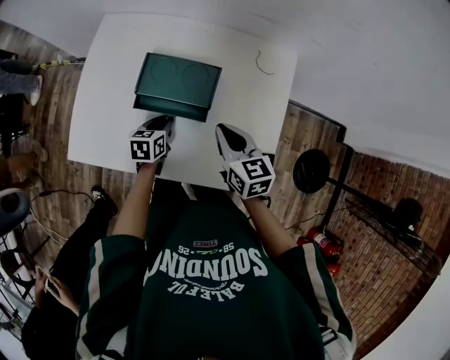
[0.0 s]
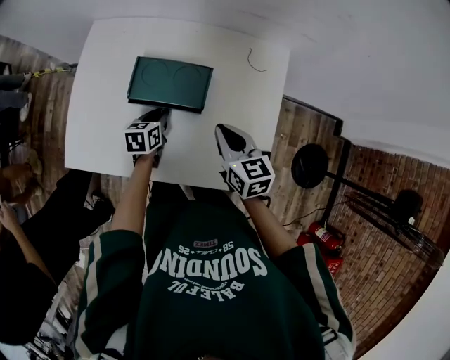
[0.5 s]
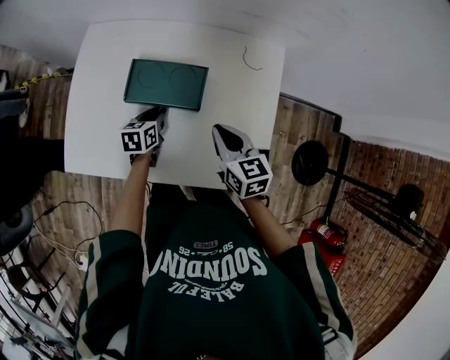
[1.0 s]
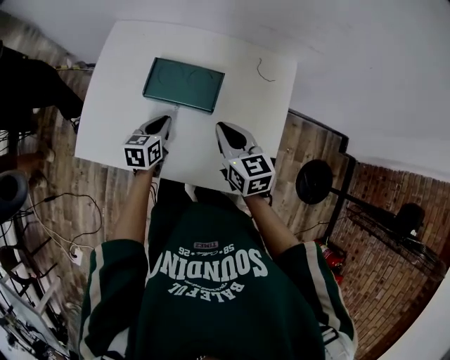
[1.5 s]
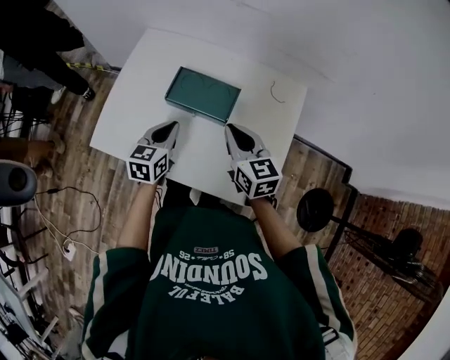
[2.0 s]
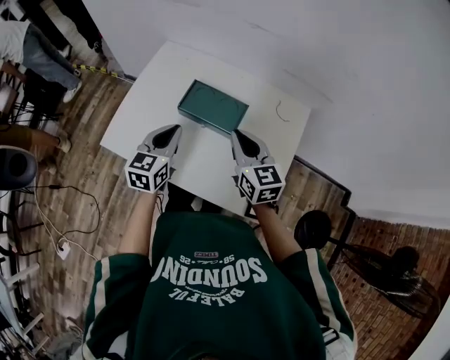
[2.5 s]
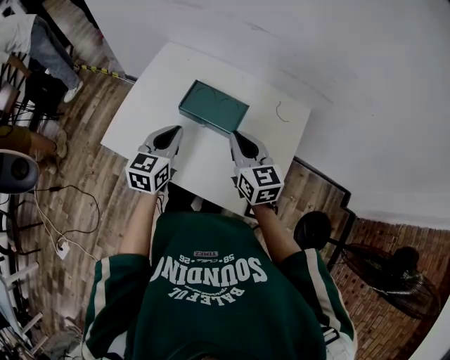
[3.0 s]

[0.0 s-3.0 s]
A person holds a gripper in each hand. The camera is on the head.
0.0 to 1.5 s: The left gripper goes approximately 5 cm upward.
1.5 to 3.0 s: The left gripper shifts roughly 15 cm upward, and swivels some 20 degrees; the right gripper heads upward, covering roughly 10 cm.

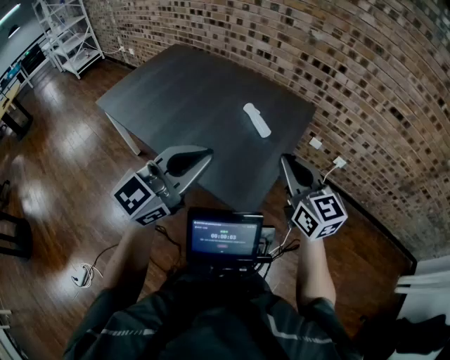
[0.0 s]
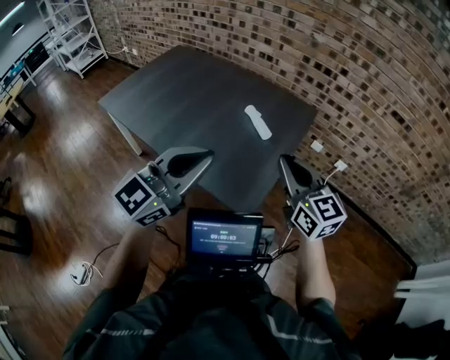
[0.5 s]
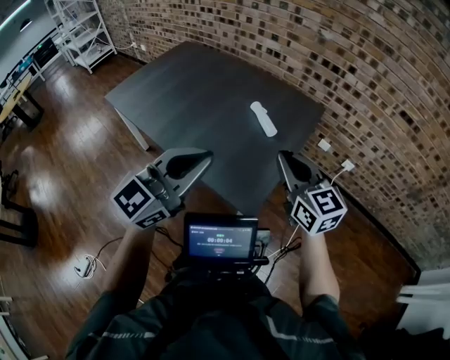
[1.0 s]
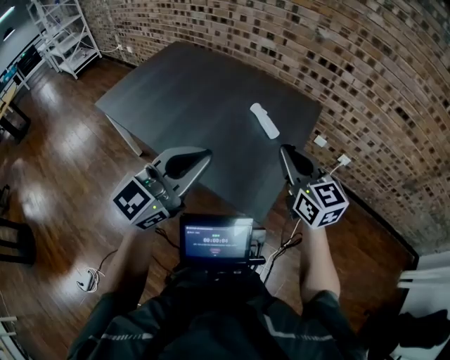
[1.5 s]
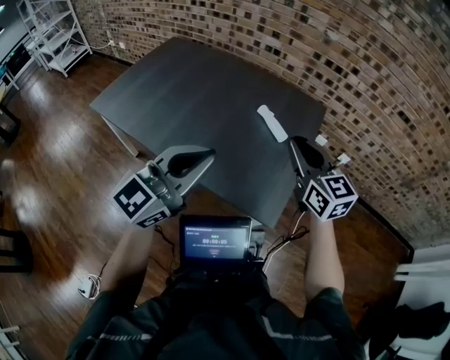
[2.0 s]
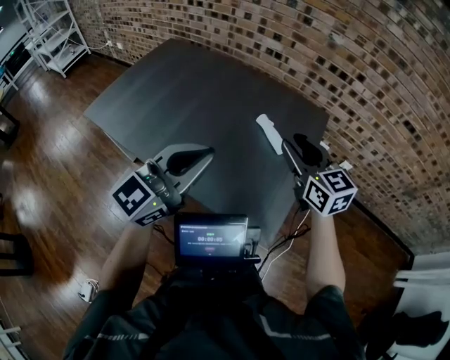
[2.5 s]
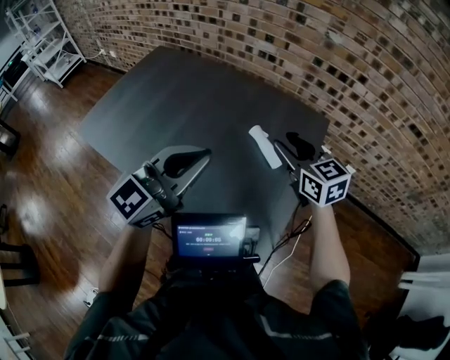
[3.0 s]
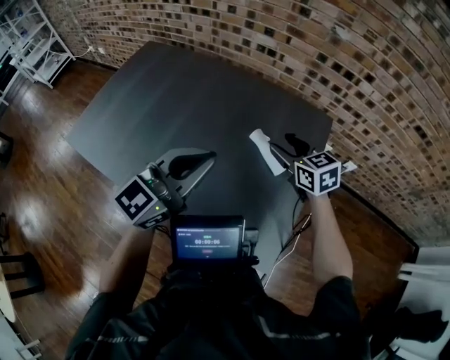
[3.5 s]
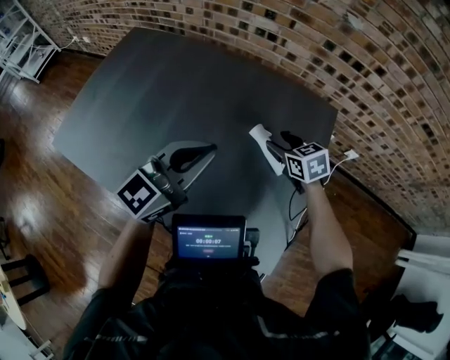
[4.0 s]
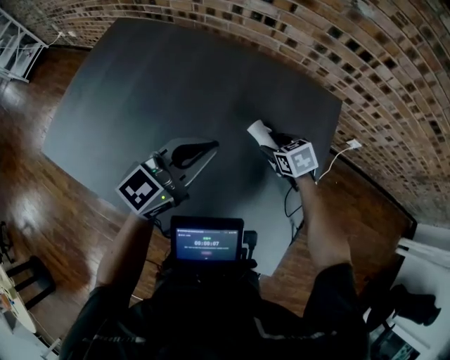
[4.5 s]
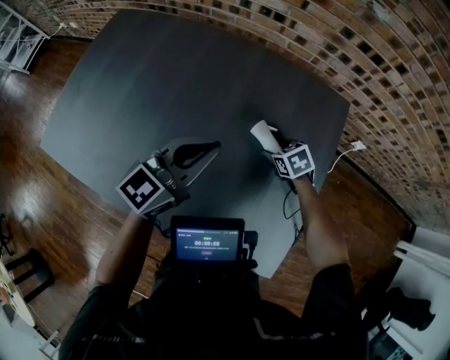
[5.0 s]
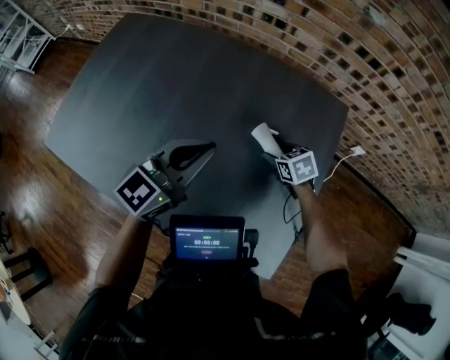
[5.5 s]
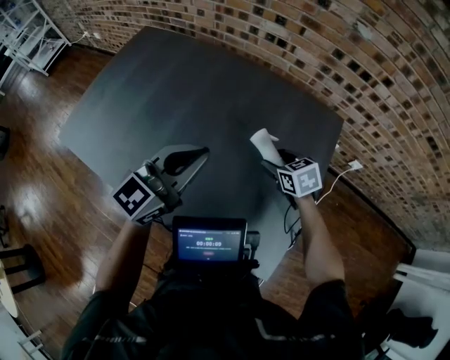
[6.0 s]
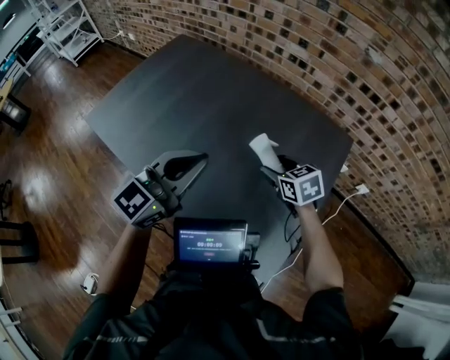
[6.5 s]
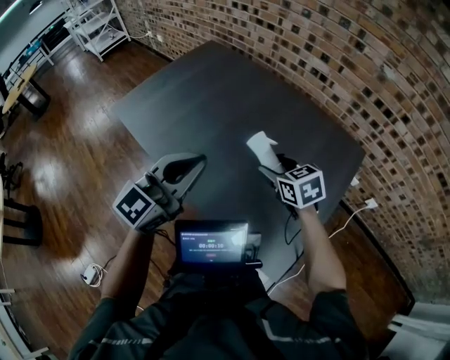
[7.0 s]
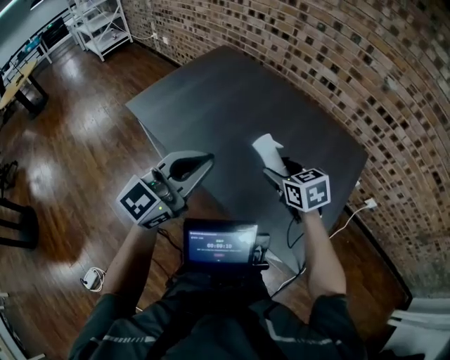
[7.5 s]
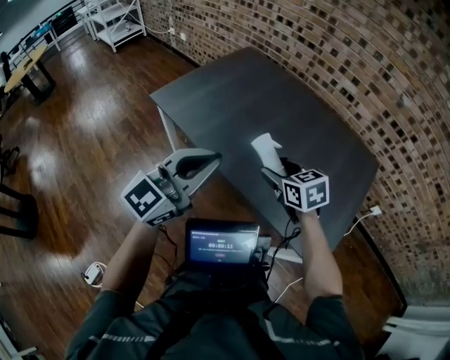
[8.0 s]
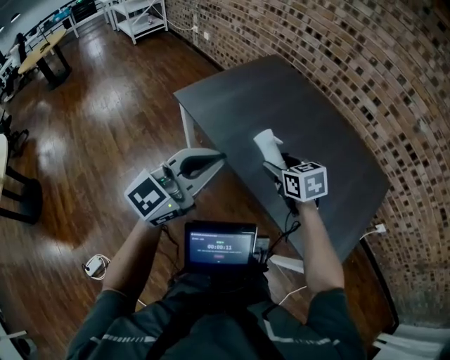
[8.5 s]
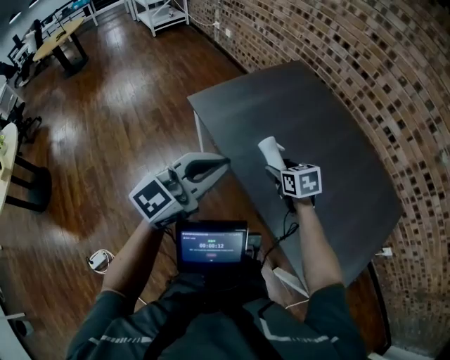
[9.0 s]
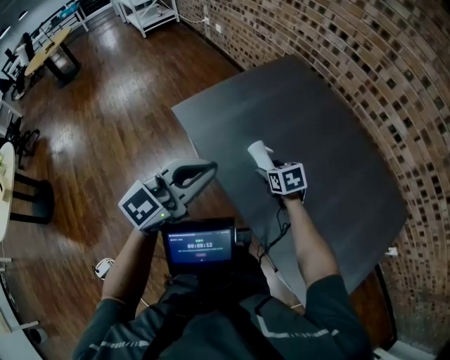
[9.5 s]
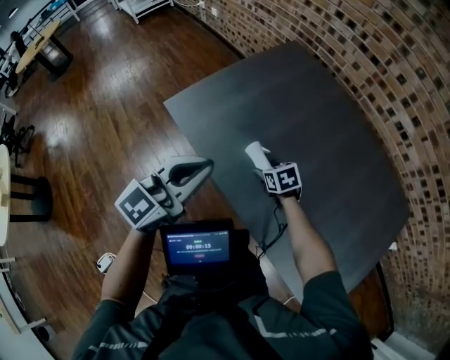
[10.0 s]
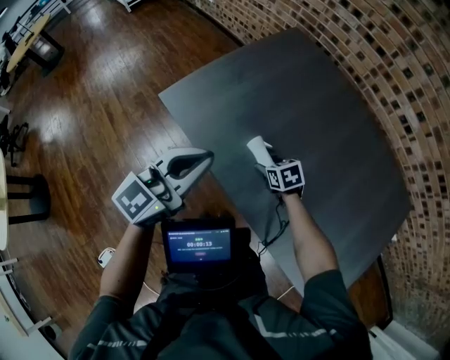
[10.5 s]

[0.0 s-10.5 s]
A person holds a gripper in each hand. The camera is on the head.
0.0 to 2.0 s: The left gripper travels to the left by about 10 cm; the right gripper moves to the left and forward, approximately 15 cm.
2.0 to 4.0 s: The left gripper shifts approximately 35 cm forward. Meanwhile the right gripper shifts some 40 cm forward and downward, points its fingers about 30 degrees further downward, and opens up.
4.0 to 6.5 s: Both grippers travel together backward and to the left, about 10 cm. The right gripper moves about 15 cm downward and comes back.
6.5 to 8.5 s: The left gripper moves to the left and backward, roughly 40 cm. Meanwhile the right gripper heads to the left, covering about 40 cm.
8.5 to 10.5 s: The left gripper moves forward, about 25 cm. The right gripper heads downward and forward, covering roughly 30 cm, and swivels some 20 degrees.

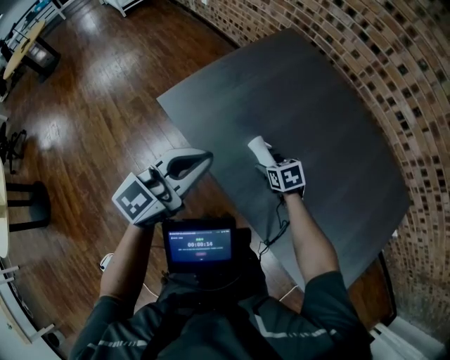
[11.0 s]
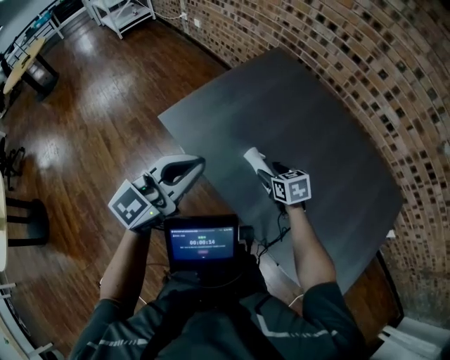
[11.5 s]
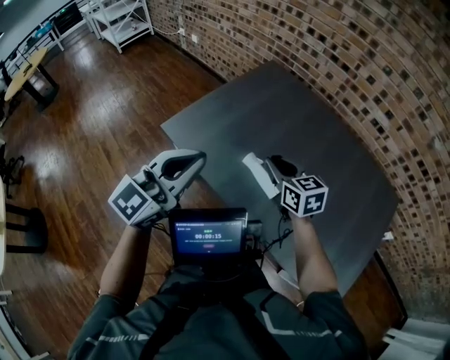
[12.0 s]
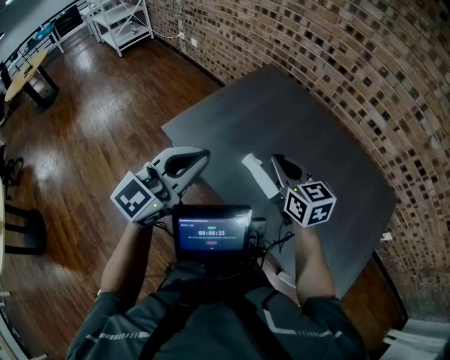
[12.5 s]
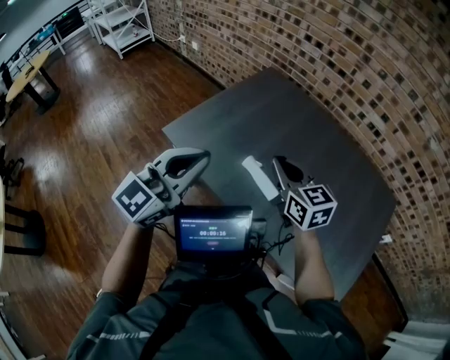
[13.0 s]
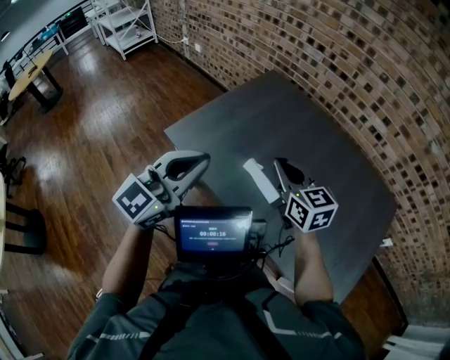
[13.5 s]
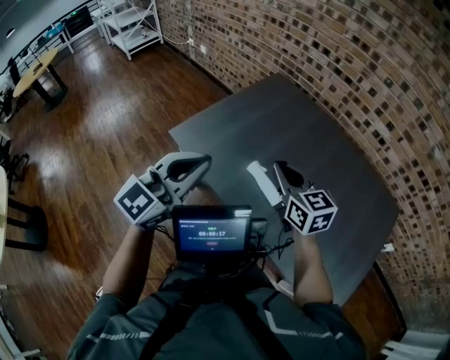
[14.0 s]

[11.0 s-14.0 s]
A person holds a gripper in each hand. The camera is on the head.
11.0 to 12.5 s: The left gripper heads upward, covering some 10 cm. The right gripper goes roughly 30 cm upward, tilts its fingers about 40 degrees upward, and closes.
12.5 to 14.0 s: The grippers move only a little.

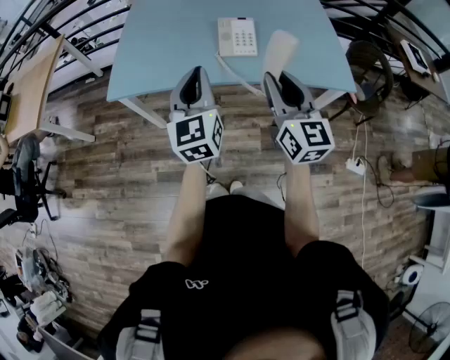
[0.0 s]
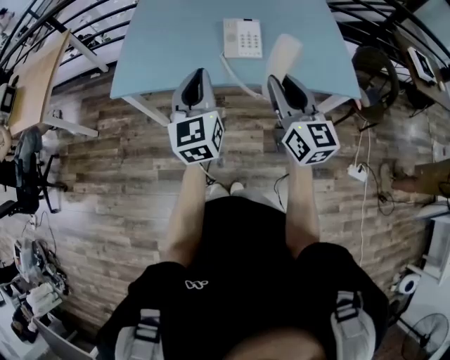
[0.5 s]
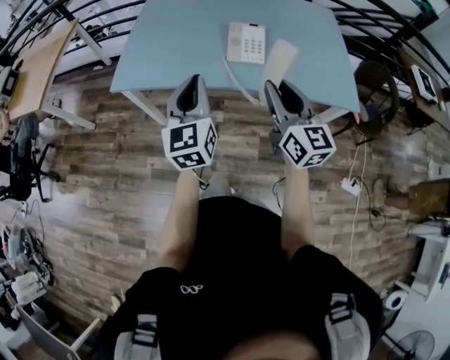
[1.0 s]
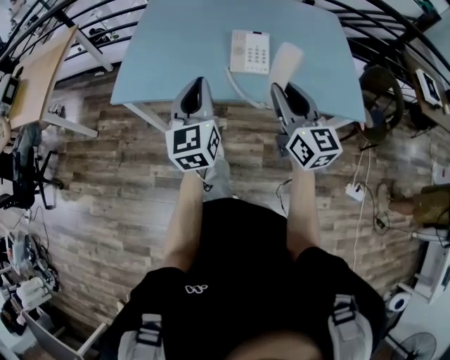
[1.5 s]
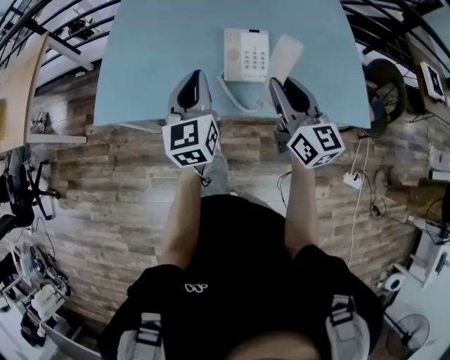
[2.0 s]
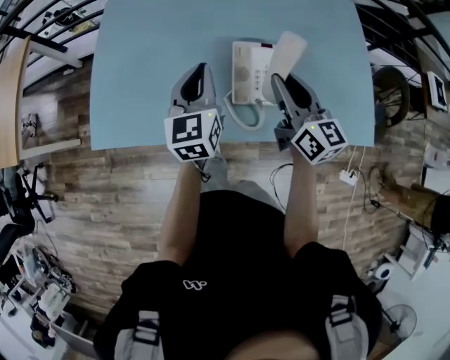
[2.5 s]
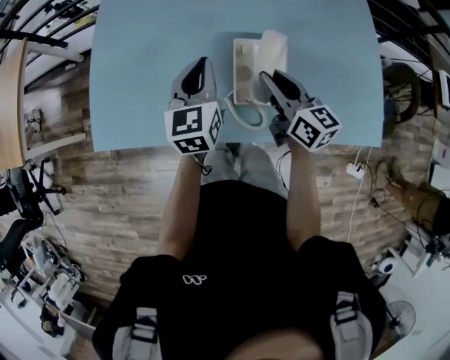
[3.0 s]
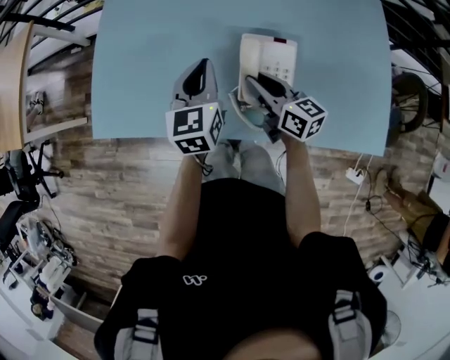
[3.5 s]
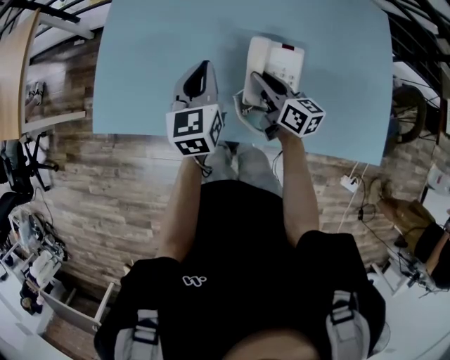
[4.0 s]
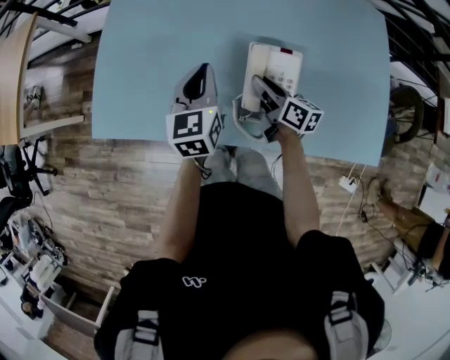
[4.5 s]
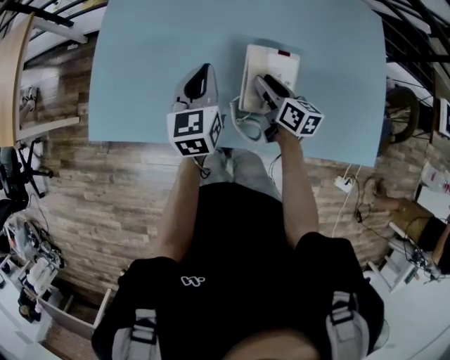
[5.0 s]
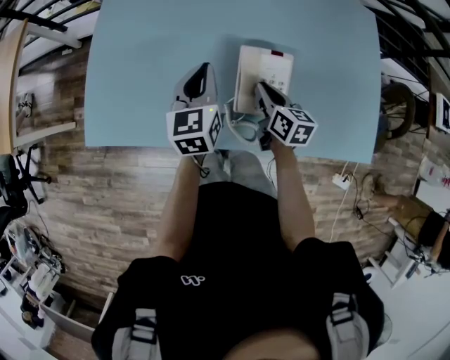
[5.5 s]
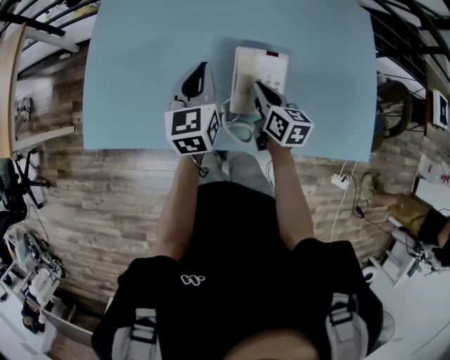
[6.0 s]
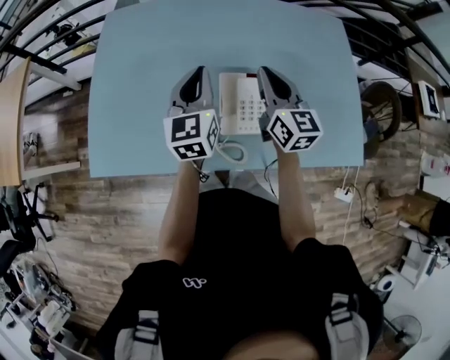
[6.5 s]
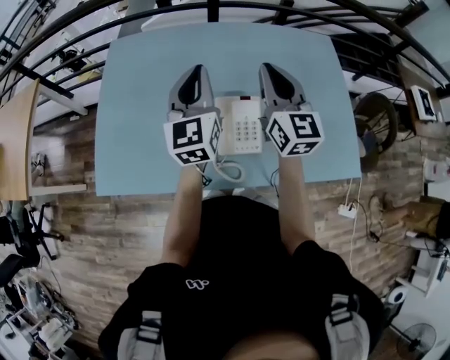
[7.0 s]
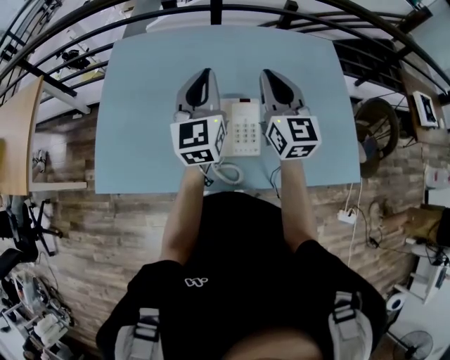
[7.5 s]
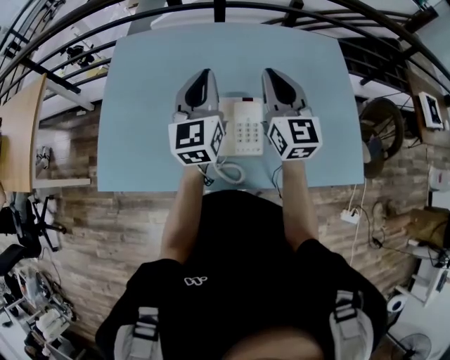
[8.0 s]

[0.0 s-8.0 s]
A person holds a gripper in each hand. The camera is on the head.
0.0 to 2.0 s: The two grippers go approximately 20 cm forward.
2.0 to 4.0 s: The two grippers go some 25 cm forward and downward. The right gripper swivels about 40 degrees.
4.0 to 6.0 s: The right gripper changes its angle by some 20 degrees.
6.0 to 8.0 s: The right gripper heads upward, covering roughly 25 cm, and tilts its fingers about 30 degrees upward. The left gripper heads upward and to the right, covering roughly 20 cm, and swivels roughly 20 degrees.

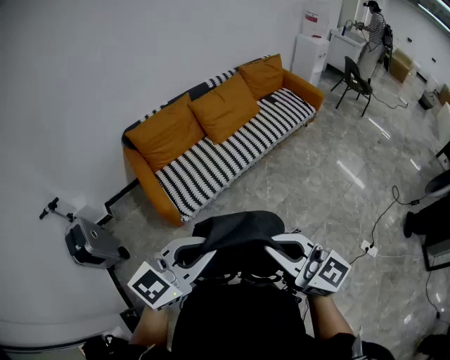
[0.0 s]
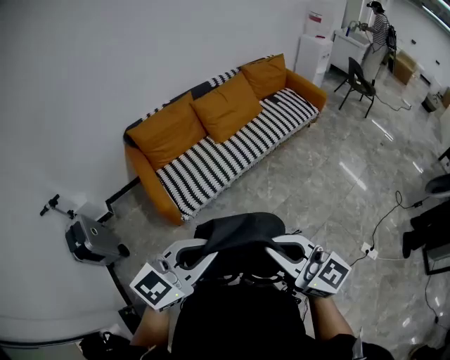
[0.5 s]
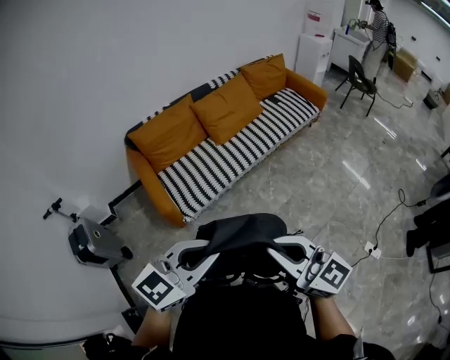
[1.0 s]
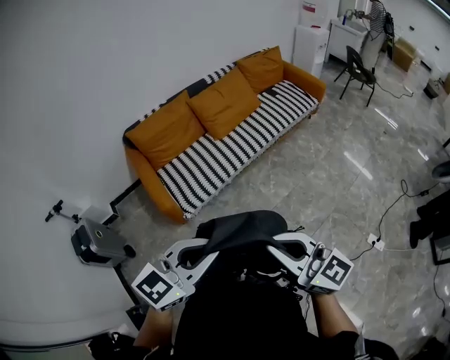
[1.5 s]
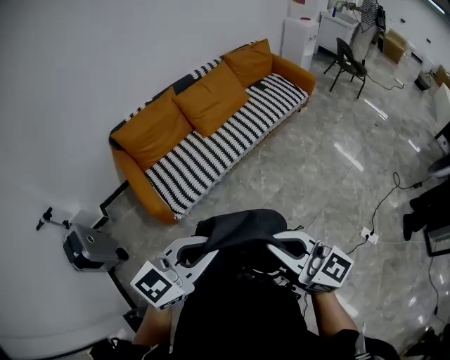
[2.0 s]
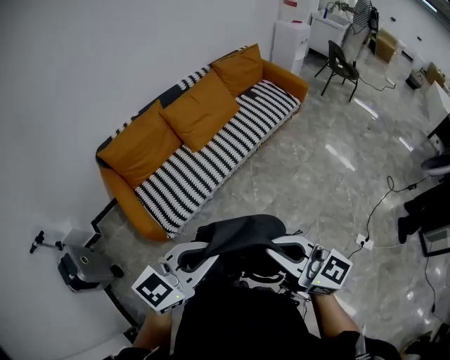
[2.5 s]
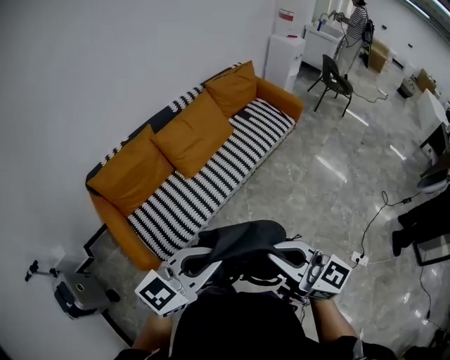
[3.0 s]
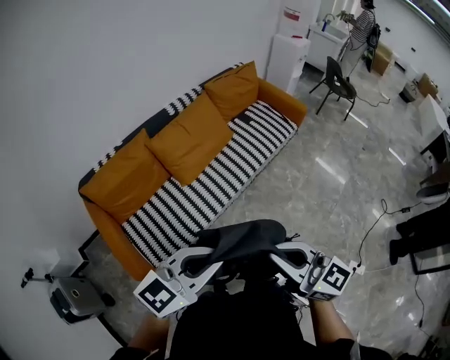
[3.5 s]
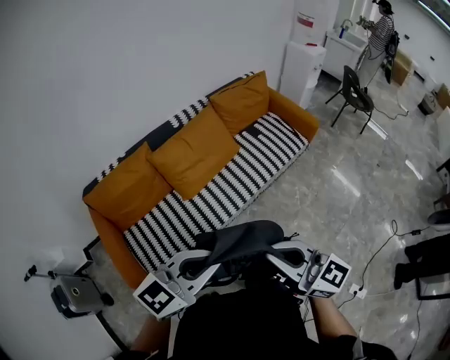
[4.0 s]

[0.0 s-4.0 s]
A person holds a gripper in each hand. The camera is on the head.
0.0 to 2.0 s: Both grippers travel together to the right, some 5 cm.
2.0 to 4.0 s: The two grippers travel together, forward, roughly 40 cm.
